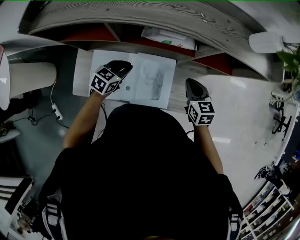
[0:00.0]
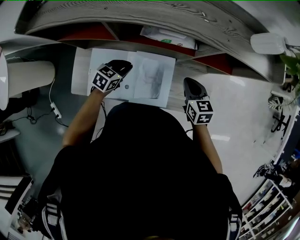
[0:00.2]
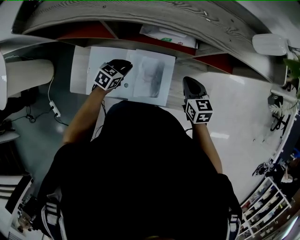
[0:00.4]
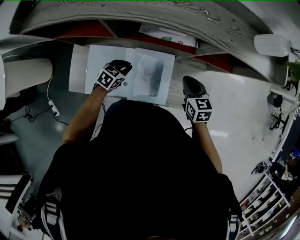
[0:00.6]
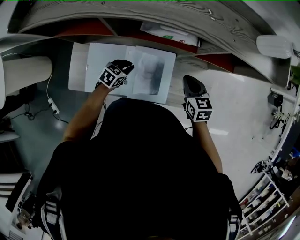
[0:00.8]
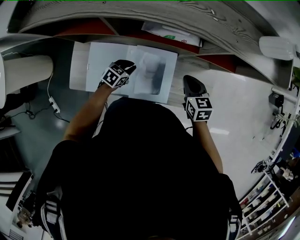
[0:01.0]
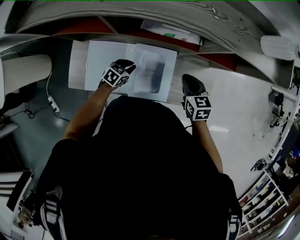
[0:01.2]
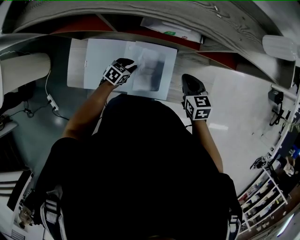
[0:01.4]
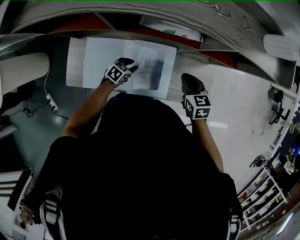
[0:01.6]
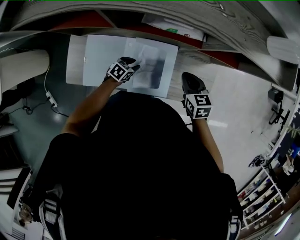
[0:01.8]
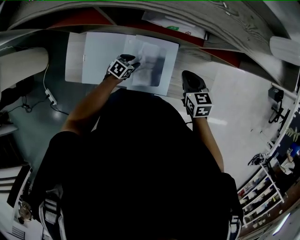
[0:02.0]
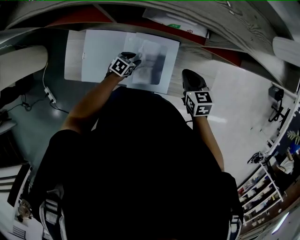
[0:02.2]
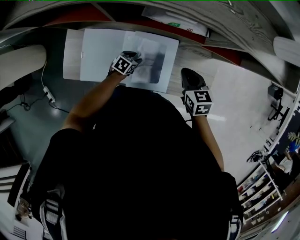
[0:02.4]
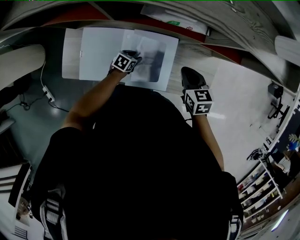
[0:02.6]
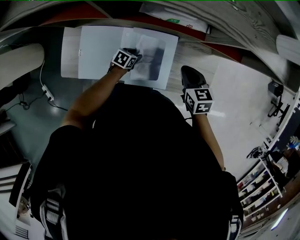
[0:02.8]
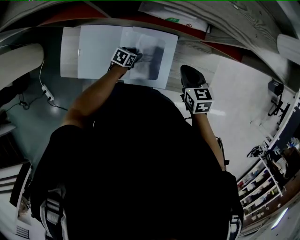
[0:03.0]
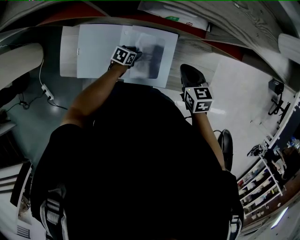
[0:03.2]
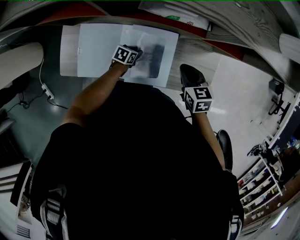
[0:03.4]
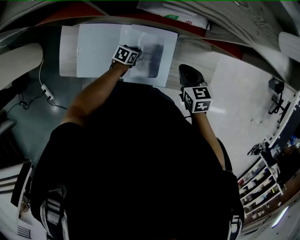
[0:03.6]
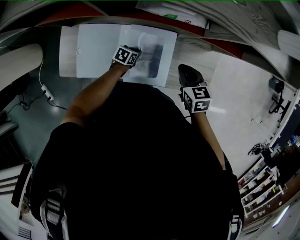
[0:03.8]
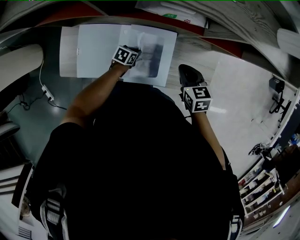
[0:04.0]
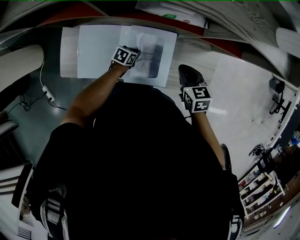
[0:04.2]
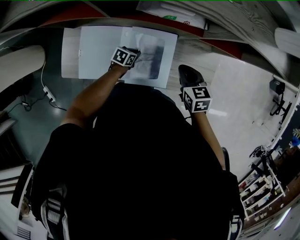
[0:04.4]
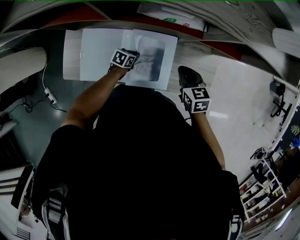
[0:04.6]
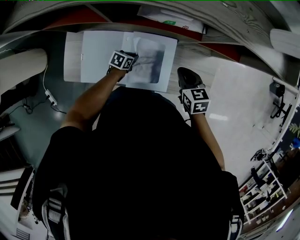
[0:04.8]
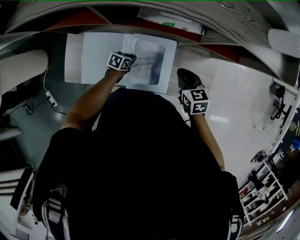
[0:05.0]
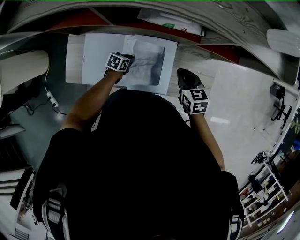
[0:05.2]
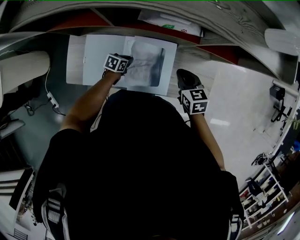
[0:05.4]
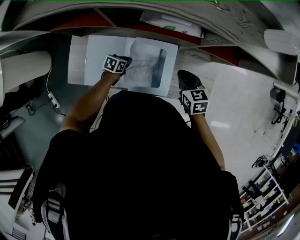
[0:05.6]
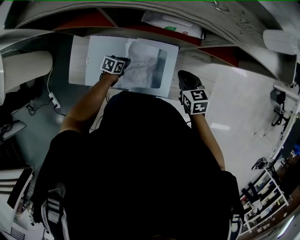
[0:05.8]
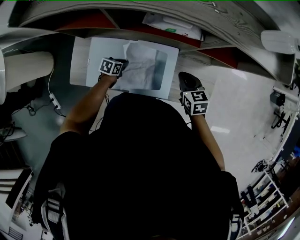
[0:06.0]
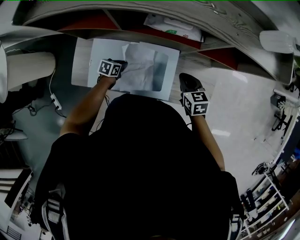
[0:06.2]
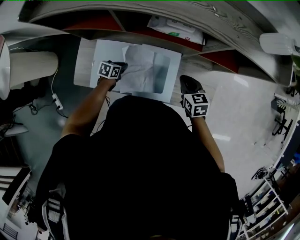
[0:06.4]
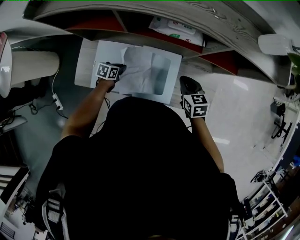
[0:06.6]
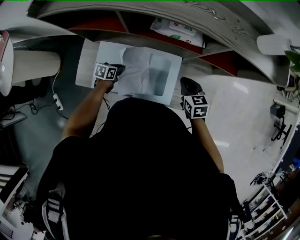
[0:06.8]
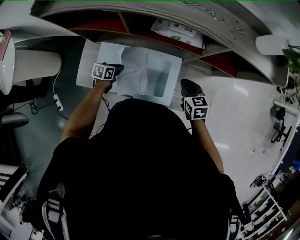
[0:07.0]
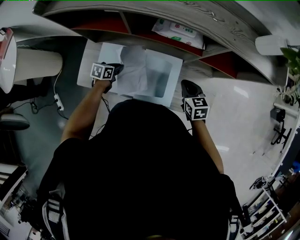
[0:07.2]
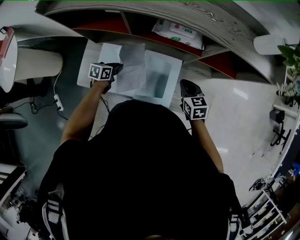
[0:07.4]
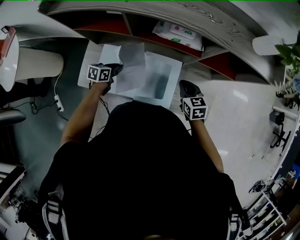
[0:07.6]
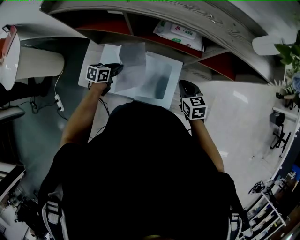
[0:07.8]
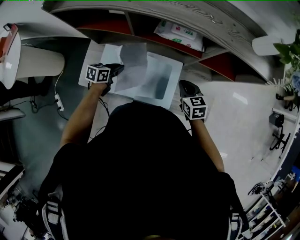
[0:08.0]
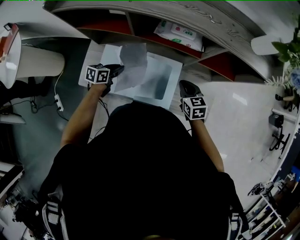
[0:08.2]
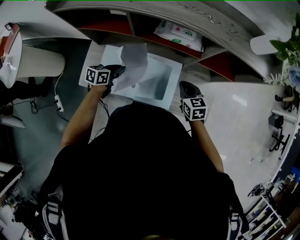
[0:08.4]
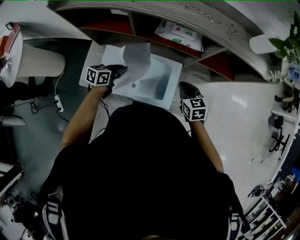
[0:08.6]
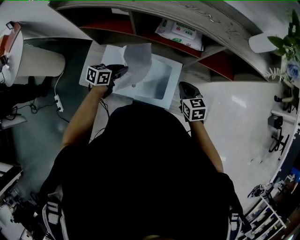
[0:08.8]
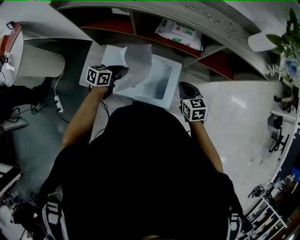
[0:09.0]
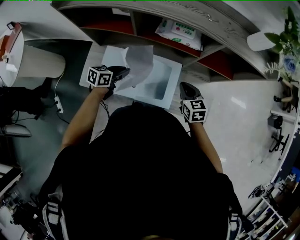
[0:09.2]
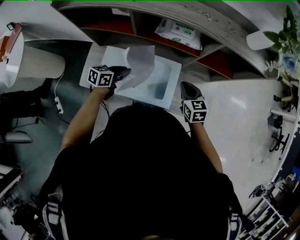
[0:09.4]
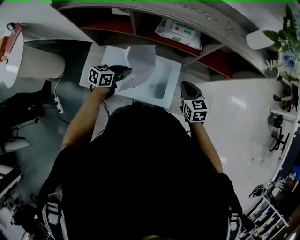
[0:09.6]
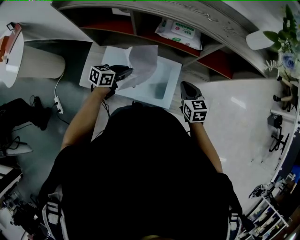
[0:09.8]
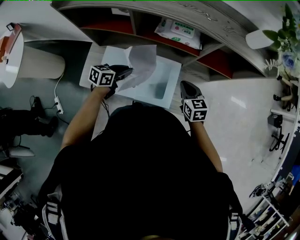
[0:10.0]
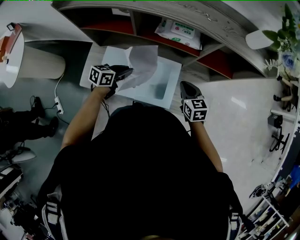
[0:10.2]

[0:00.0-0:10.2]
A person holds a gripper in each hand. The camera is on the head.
0:00.0 to 0:01.4: The left gripper travels downward by about 15 cm.
0:01.4 to 0:03.0: The left gripper is displaced downward by about 10 cm.
0:03.0 to 0:04.4: The left gripper closes its fingers.
0:04.4 to 0:05.8: The left gripper moves to the left, some 10 cm.
0:05.8 to 0:07.2: The left gripper shifts roughly 10 cm upward and to the left.
0:07.2 to 0:08.8: The left gripper is displaced upward by approximately 10 cm.
0:08.8 to 0:10.2: The grippers stay close to where they were, moving slightly.

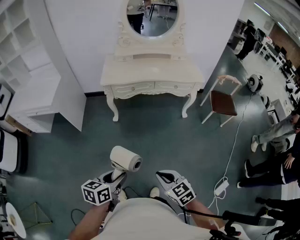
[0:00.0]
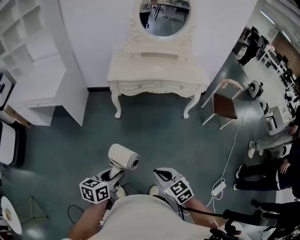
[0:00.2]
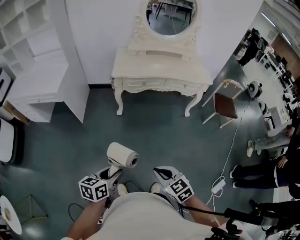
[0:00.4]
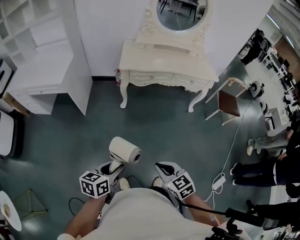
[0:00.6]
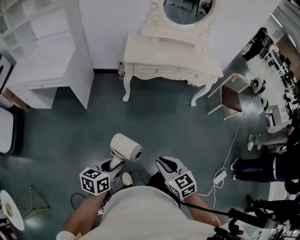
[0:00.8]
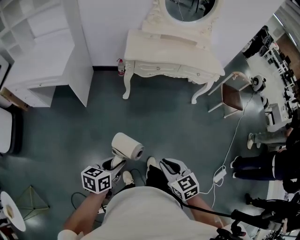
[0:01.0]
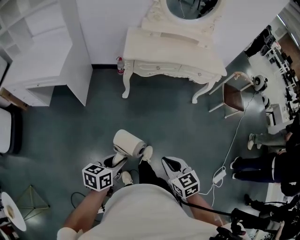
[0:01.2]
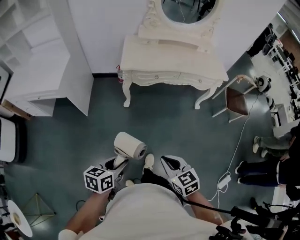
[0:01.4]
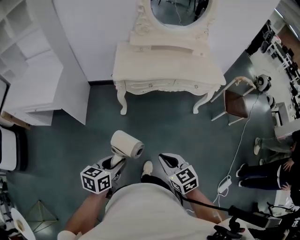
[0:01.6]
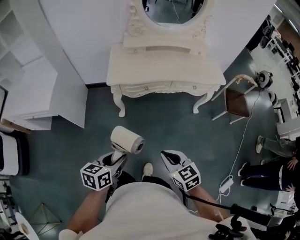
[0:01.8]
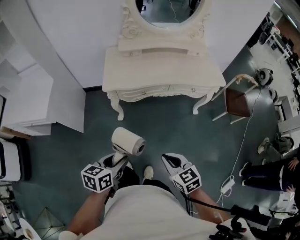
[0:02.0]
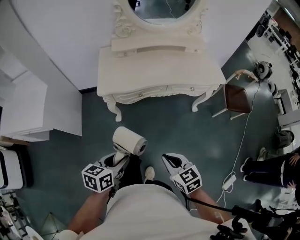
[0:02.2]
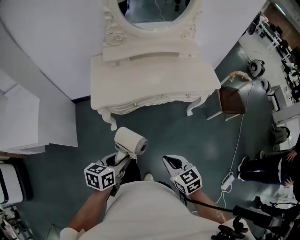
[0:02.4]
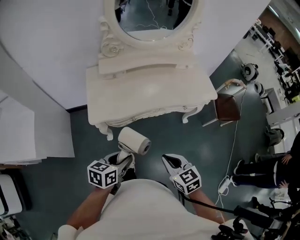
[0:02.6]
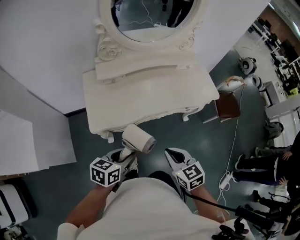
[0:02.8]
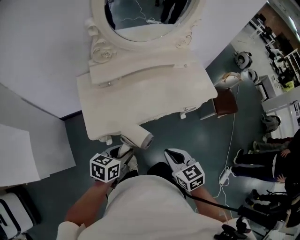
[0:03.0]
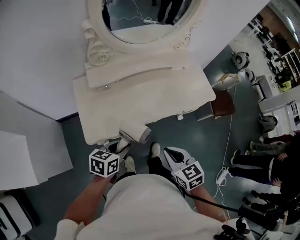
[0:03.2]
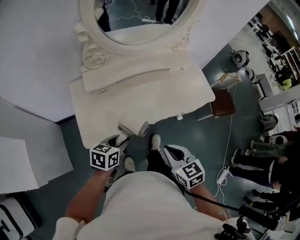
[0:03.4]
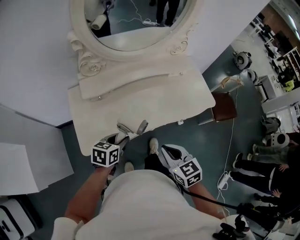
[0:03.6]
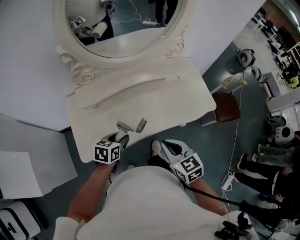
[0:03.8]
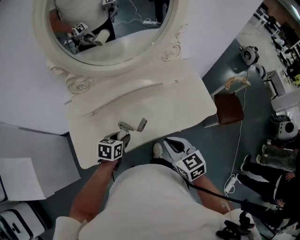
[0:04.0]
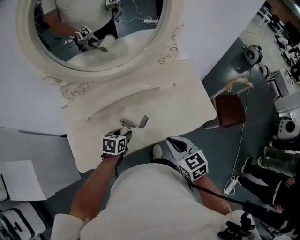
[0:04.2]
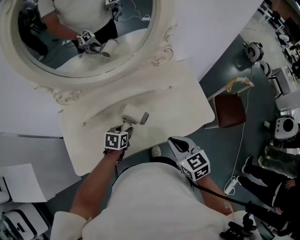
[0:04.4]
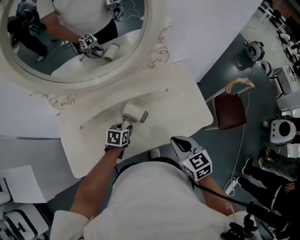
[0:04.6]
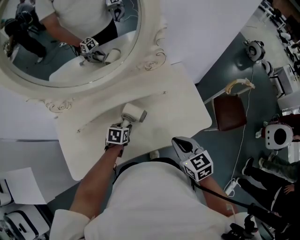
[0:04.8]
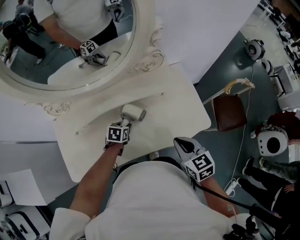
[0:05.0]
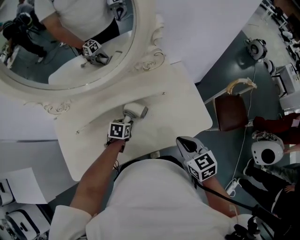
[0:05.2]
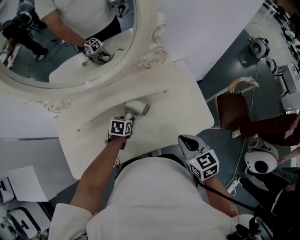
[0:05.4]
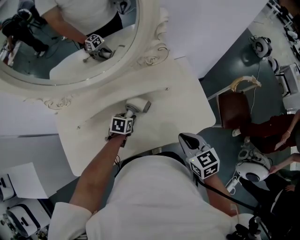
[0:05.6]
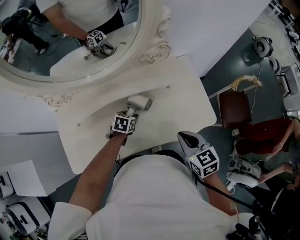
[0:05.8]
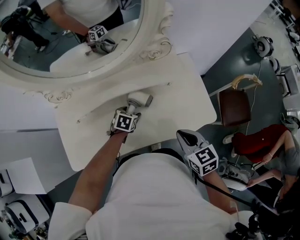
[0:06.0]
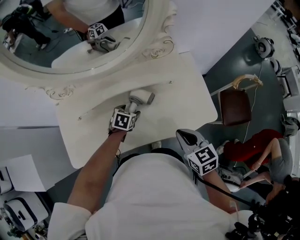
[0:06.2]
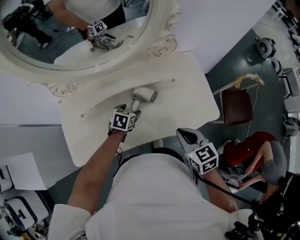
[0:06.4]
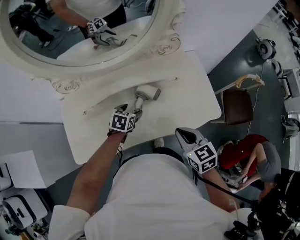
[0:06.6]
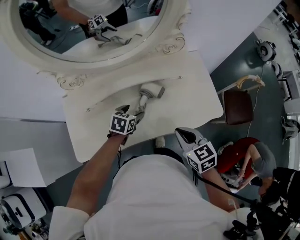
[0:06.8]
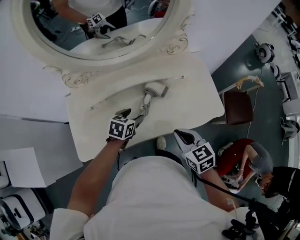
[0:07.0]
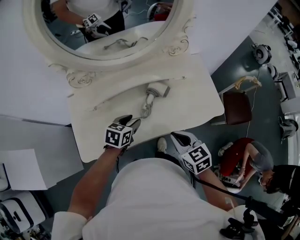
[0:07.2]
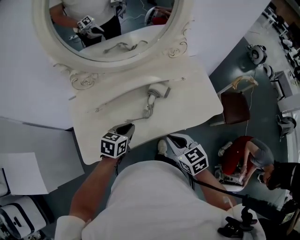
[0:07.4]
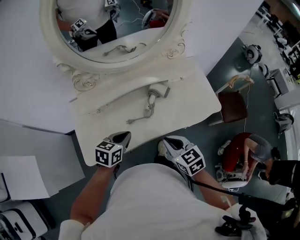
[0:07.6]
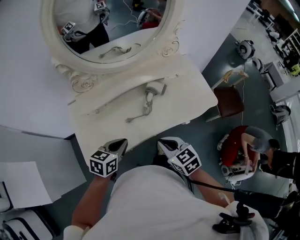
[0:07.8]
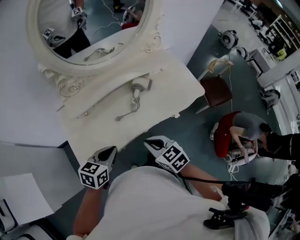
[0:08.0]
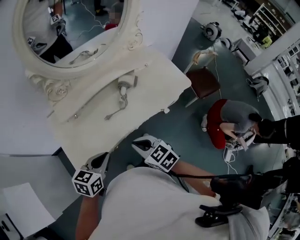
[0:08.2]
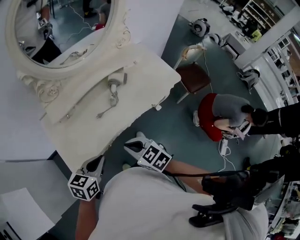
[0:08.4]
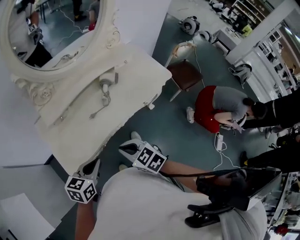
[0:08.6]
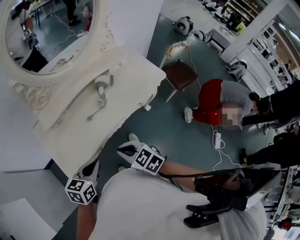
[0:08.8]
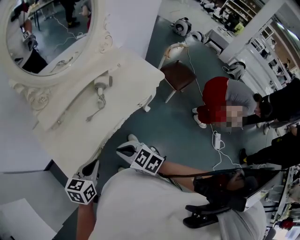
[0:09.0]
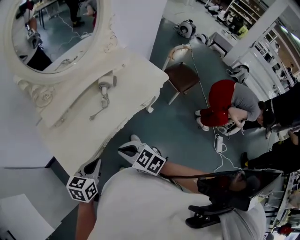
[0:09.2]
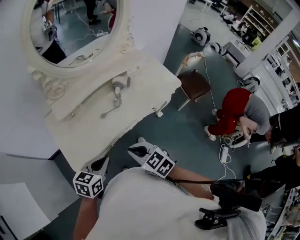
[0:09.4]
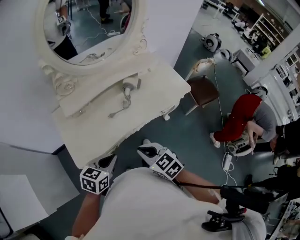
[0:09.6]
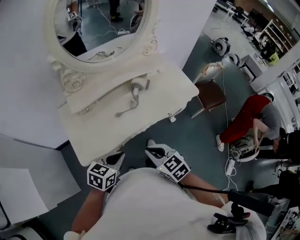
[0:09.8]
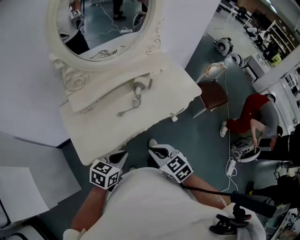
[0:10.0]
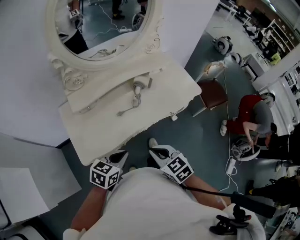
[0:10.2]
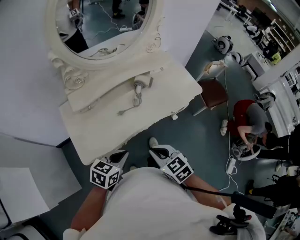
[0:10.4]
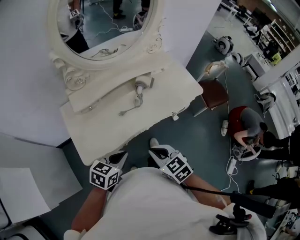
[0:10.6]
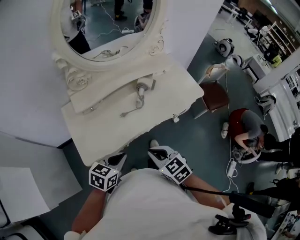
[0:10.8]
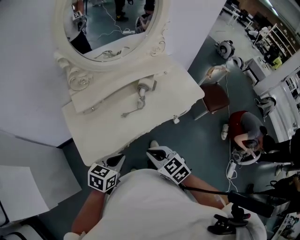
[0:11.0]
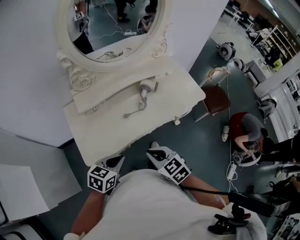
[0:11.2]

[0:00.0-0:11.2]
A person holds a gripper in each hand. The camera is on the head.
0:00.0 to 0:01.6: Both grippers travel together forward and to the left, about 25 cm.
0:01.6 to 0:03.2: The pair of grippers is taken forward, about 50 cm. The left gripper swivels roughly 20 degrees; the right gripper swivels some 20 degrees.
0:03.2 to 0:04.8: The pair of grippers is taken forward and to the right, about 40 cm. The left gripper changes its angle by roughly 30 degrees.
0:04.8 to 0:06.4: The left gripper opens up.
0:06.4 to 0:08.0: The right gripper moves to the left and backward, roughly 30 cm. The left gripper goes about 35 cm backward, upward and to the left, rotates some 20 degrees, and closes.
0:08.0 to 0:09.6: Both grippers move backward, approximately 10 cm.
0:09.6 to 0:11.2: The grippers make only small movements.

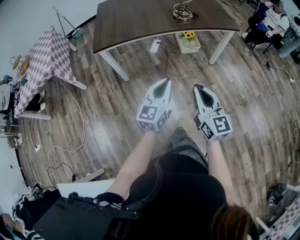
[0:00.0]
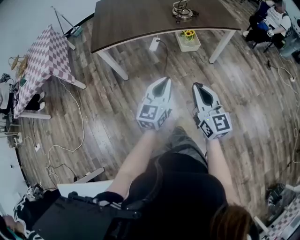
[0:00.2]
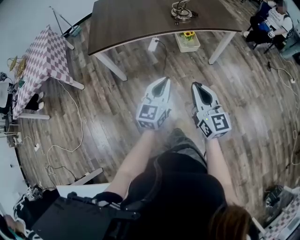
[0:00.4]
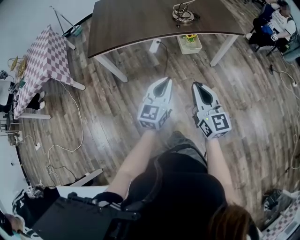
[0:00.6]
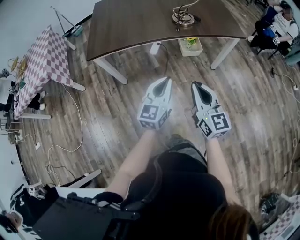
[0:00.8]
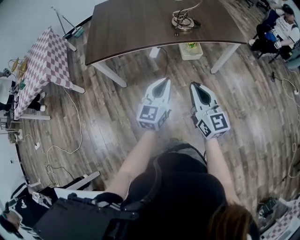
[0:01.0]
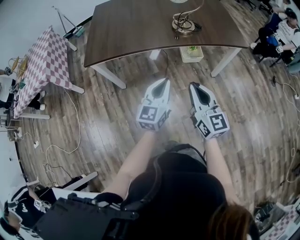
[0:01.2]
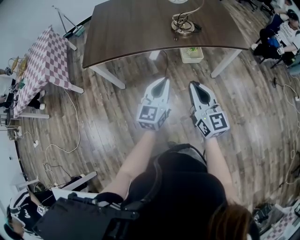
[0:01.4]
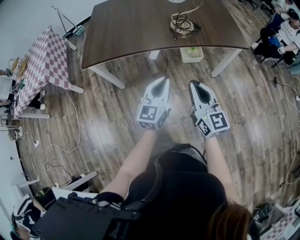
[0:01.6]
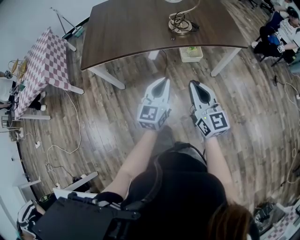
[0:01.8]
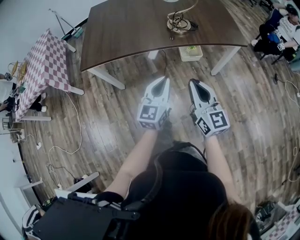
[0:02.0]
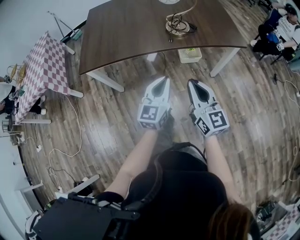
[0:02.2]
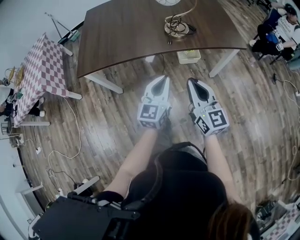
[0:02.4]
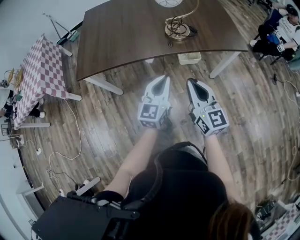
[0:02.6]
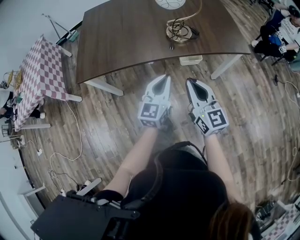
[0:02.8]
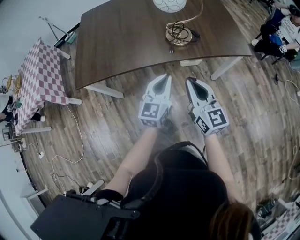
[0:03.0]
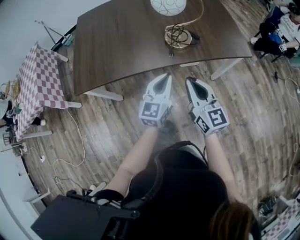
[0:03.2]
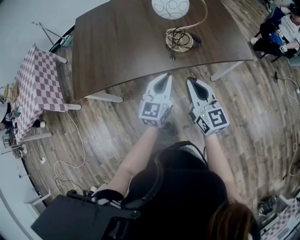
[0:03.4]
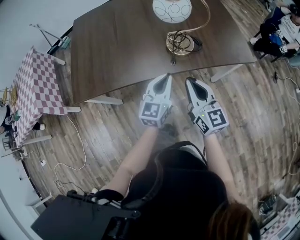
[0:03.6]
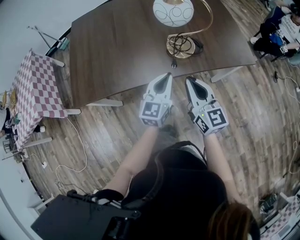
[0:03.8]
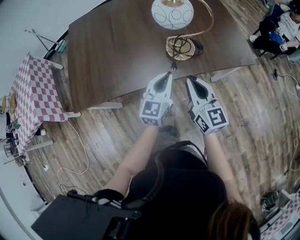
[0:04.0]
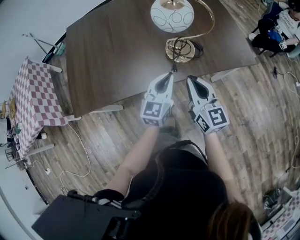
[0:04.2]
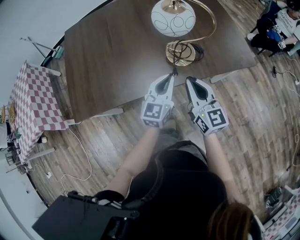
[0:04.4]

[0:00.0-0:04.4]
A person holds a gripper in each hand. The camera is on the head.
0:00.0 to 0:01.4: The two grippers go about 20 cm forward.
0:01.4 to 0:03.0: Both grippers move forward, approximately 15 cm.
0:03.0 to 0:04.4: The grippers both shift forward by approximately 15 cm.
